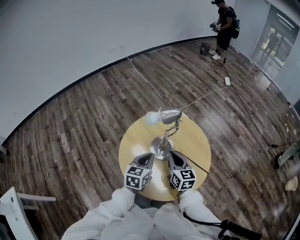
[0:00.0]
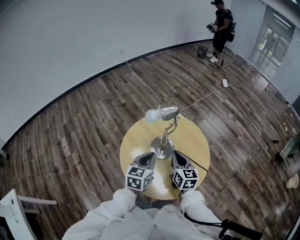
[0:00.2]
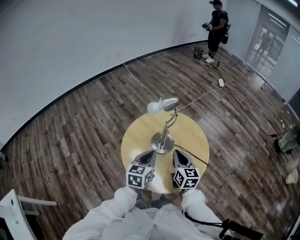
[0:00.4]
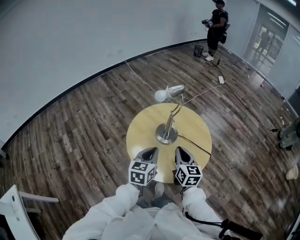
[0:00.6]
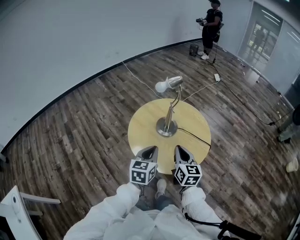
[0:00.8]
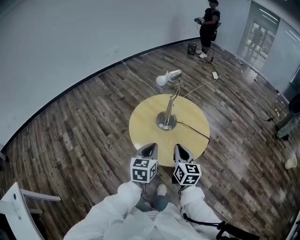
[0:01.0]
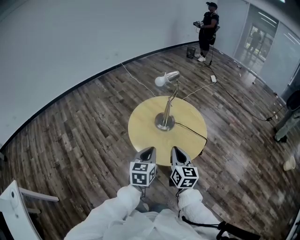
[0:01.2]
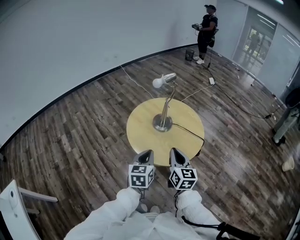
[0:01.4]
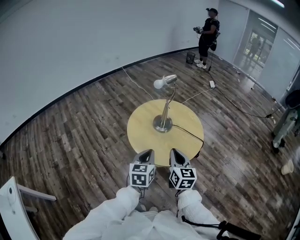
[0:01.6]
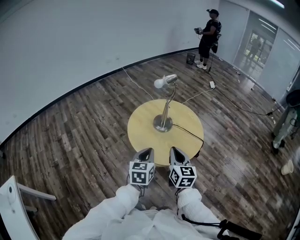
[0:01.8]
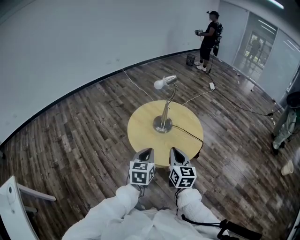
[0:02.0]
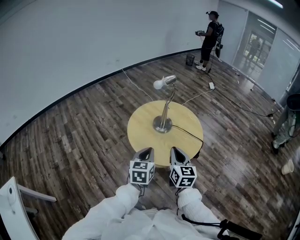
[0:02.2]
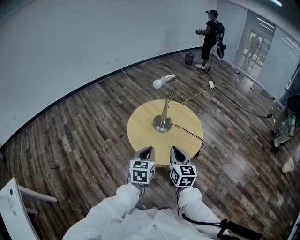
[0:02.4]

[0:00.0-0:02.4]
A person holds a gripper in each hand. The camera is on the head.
0:00.0 to 0:01.2: The two grippers go approximately 25 cm backward.
0:01.2 to 0:02.4: The grippers make only small movements.

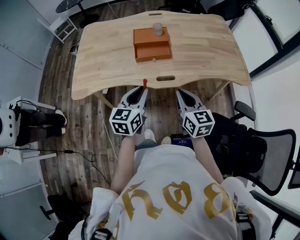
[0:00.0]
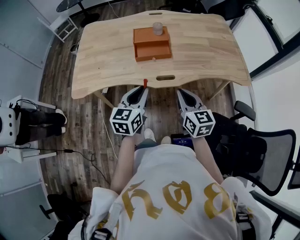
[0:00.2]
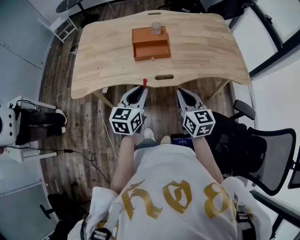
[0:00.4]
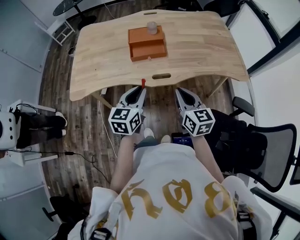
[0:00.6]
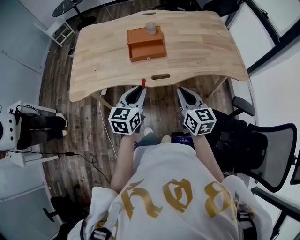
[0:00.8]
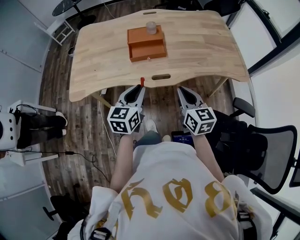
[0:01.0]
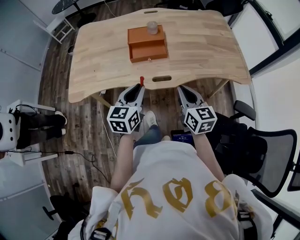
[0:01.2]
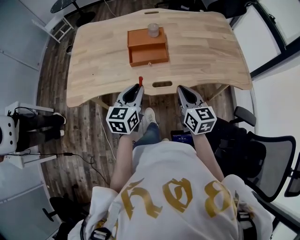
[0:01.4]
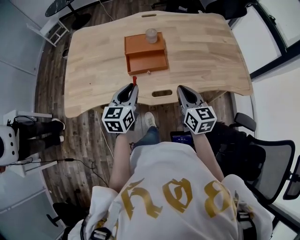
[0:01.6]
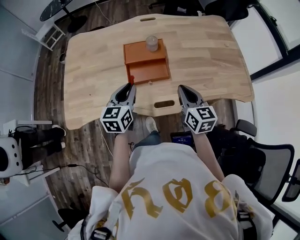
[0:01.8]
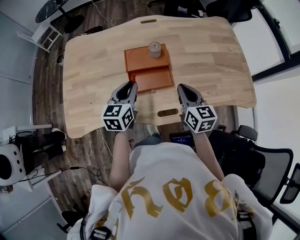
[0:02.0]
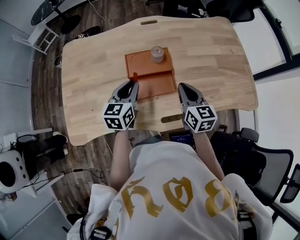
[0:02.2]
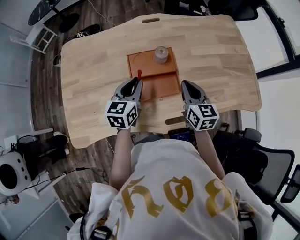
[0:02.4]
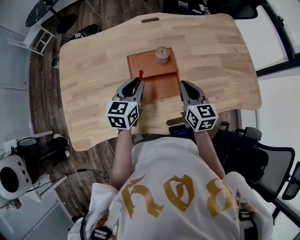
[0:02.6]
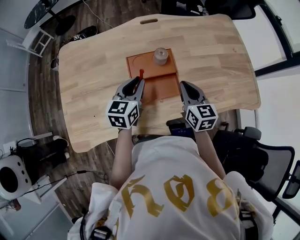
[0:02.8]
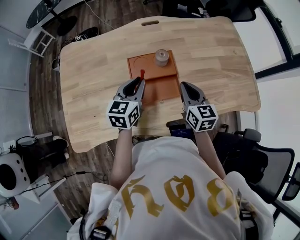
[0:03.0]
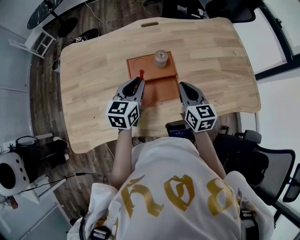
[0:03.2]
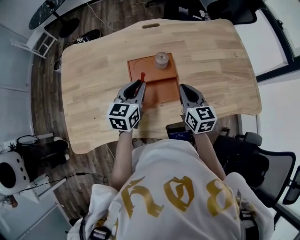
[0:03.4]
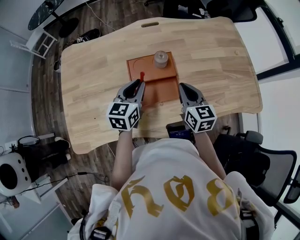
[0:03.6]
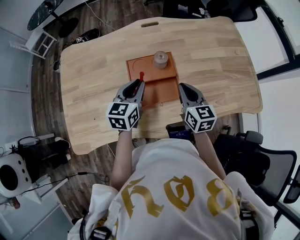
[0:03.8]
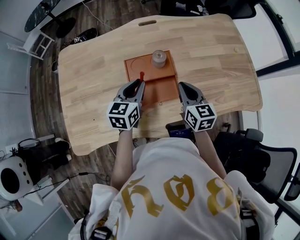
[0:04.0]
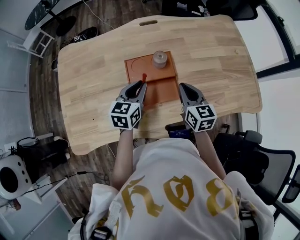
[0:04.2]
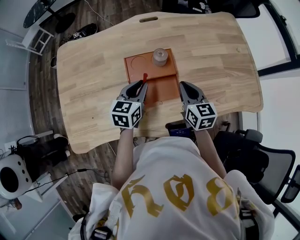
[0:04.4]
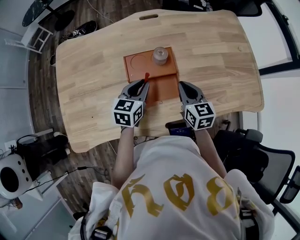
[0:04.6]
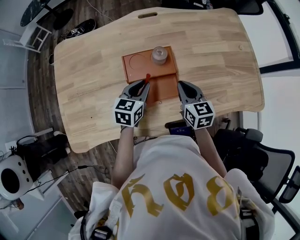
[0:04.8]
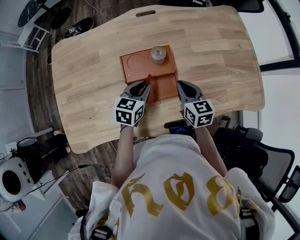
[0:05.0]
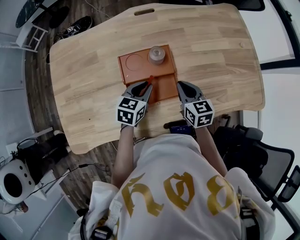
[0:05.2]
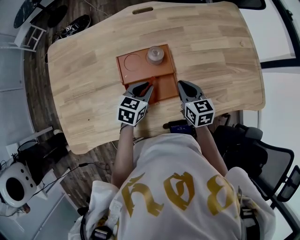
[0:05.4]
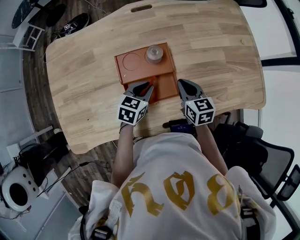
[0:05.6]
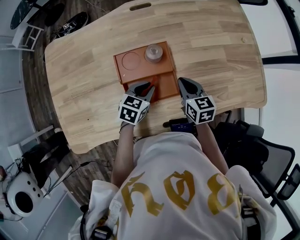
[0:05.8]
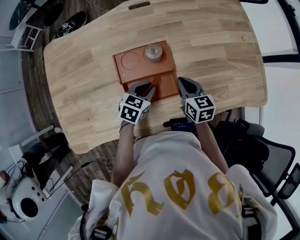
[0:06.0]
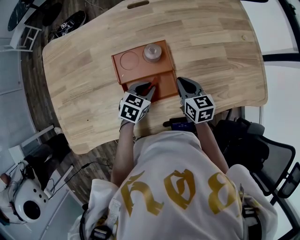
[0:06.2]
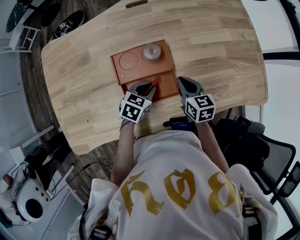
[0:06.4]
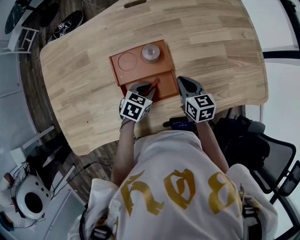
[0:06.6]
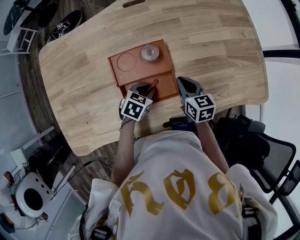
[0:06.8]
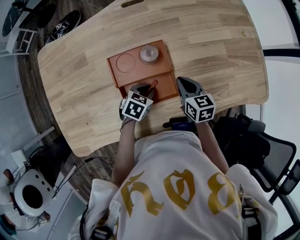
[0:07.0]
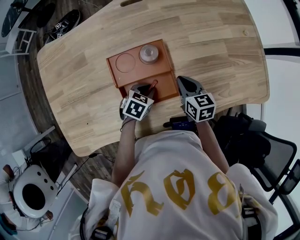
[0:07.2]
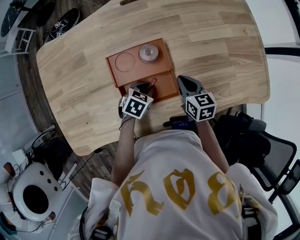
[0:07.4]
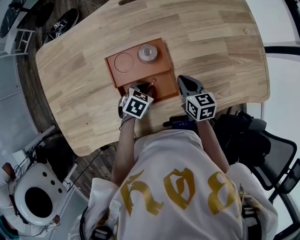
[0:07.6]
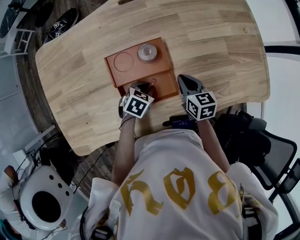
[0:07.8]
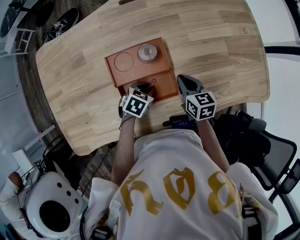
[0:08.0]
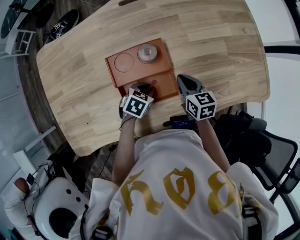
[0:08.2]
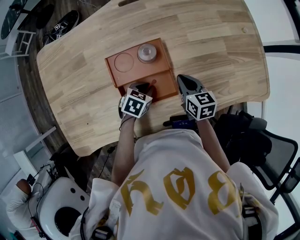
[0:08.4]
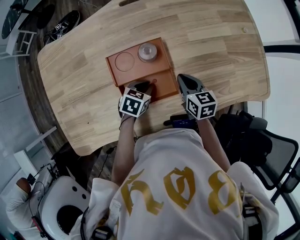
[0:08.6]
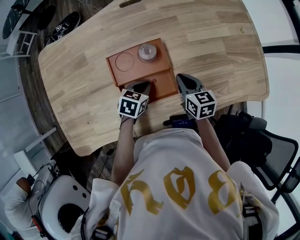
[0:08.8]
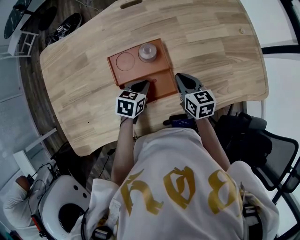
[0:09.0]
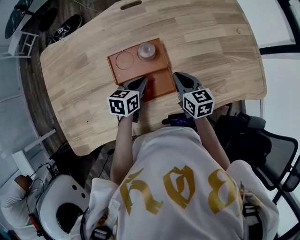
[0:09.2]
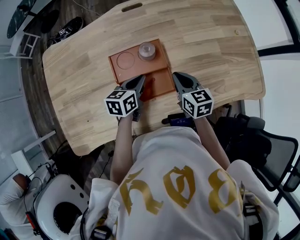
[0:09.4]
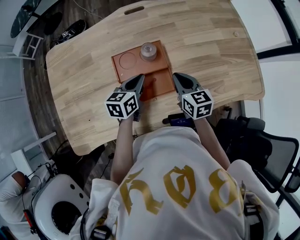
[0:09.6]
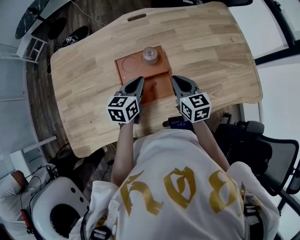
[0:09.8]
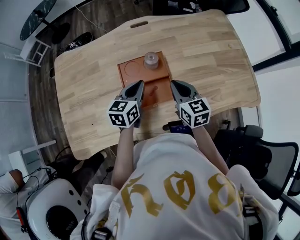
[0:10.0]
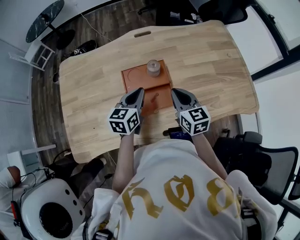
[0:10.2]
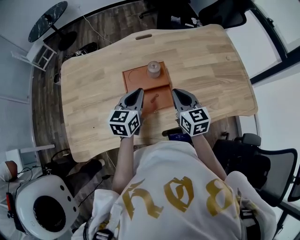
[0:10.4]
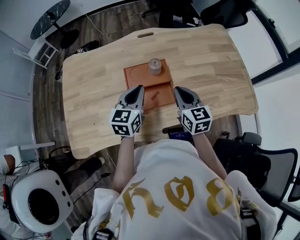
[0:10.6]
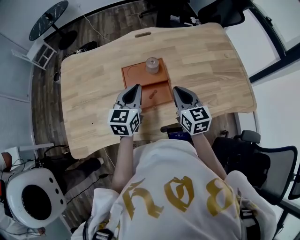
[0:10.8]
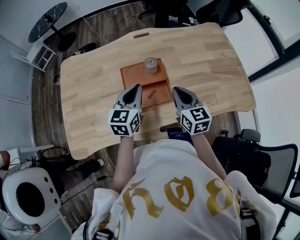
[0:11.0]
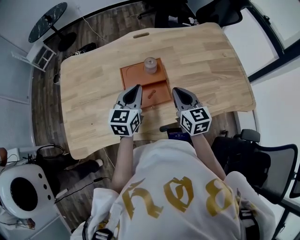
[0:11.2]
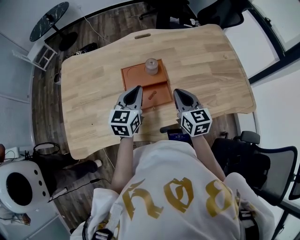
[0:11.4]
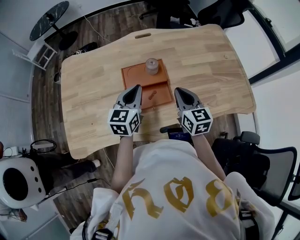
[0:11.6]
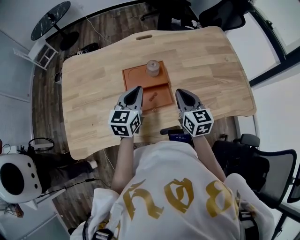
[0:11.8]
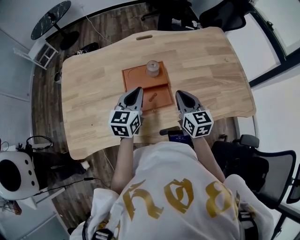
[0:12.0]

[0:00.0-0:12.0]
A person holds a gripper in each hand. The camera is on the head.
0:00.0 to 0:01.6: The two grippers go approximately 15 cm forward.
0:01.6 to 0:03.0: Both grippers move forward, about 20 cm.
0:03.0 to 0:04.4: The left gripper heads downward, covering roughly 5 cm.
0:04.4 to 0:06.0: The left gripper moves downward and to the right, about 10 cm, and turns by approximately 30 degrees. The right gripper heads downward, covering about 10 cm.
0:06.0 to 0:07.6: The left gripper travels downward by about 5 cm.
0:07.6 to 0:09.0: The left gripper shifts by roughly 5 cm.
0:09.0 to 0:10.4: The right gripper goes roughly 15 cm upward and backward; the left gripper travels upward by about 20 cm, and turns by some 30 degrees.
0:10.4 to 0:12.0: There are only small adjustments of the grippers.

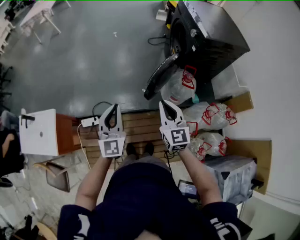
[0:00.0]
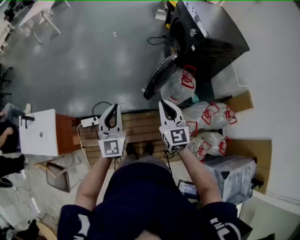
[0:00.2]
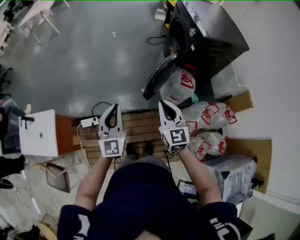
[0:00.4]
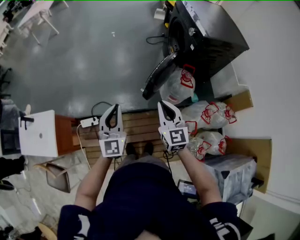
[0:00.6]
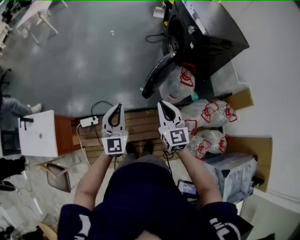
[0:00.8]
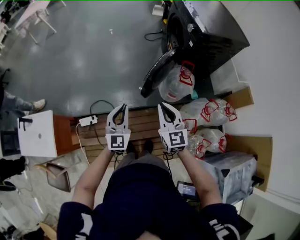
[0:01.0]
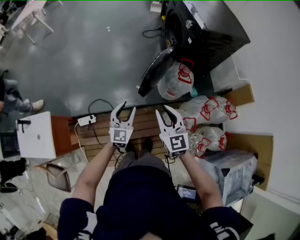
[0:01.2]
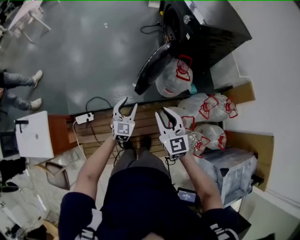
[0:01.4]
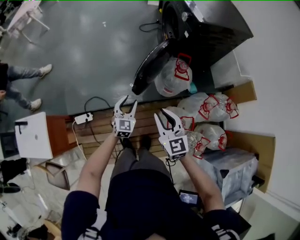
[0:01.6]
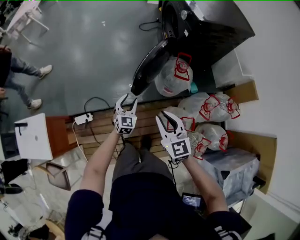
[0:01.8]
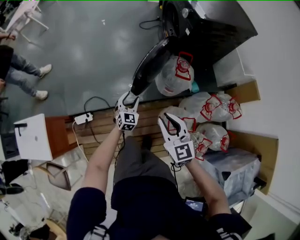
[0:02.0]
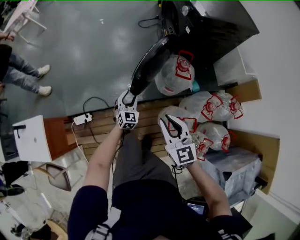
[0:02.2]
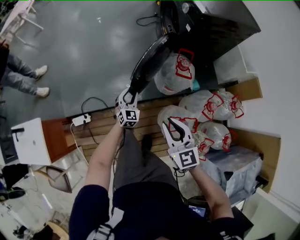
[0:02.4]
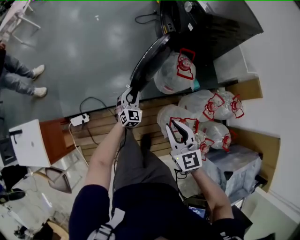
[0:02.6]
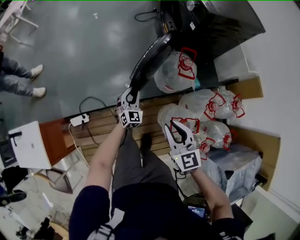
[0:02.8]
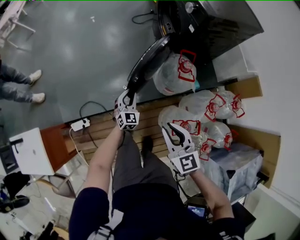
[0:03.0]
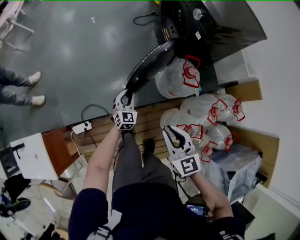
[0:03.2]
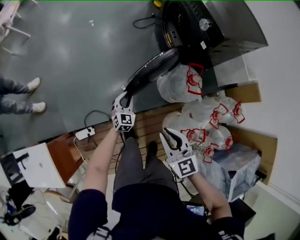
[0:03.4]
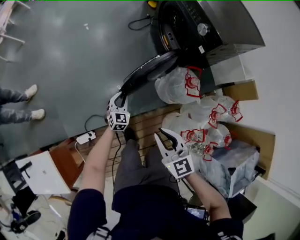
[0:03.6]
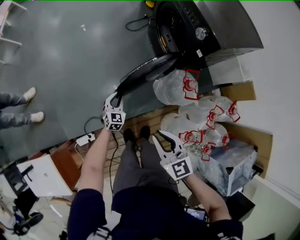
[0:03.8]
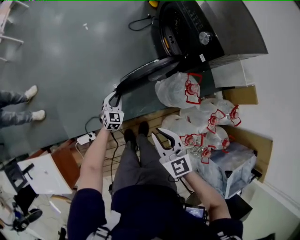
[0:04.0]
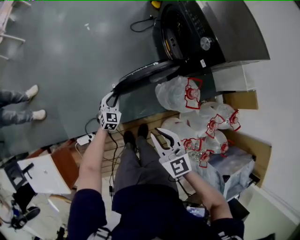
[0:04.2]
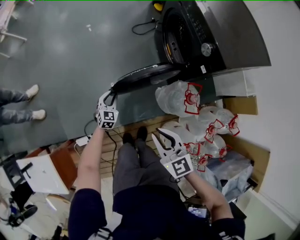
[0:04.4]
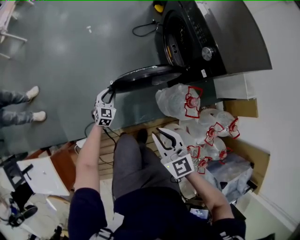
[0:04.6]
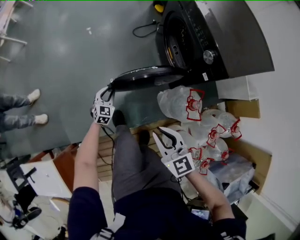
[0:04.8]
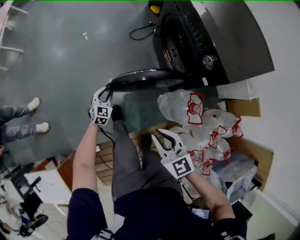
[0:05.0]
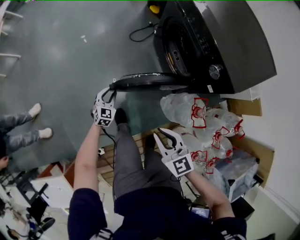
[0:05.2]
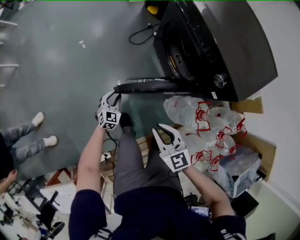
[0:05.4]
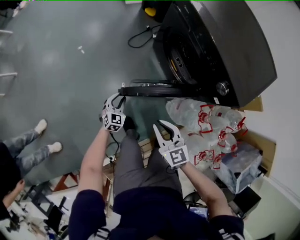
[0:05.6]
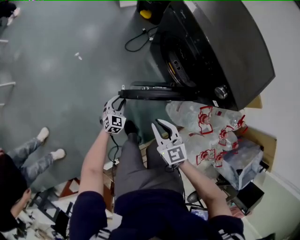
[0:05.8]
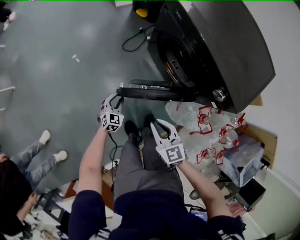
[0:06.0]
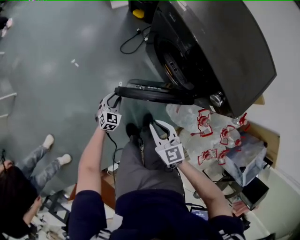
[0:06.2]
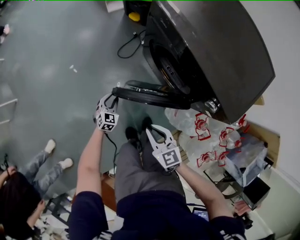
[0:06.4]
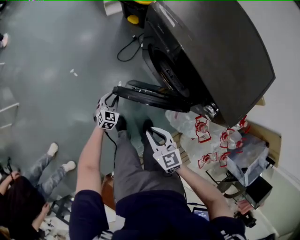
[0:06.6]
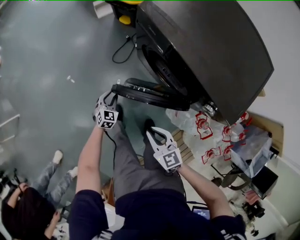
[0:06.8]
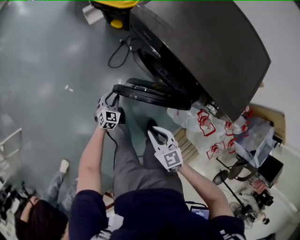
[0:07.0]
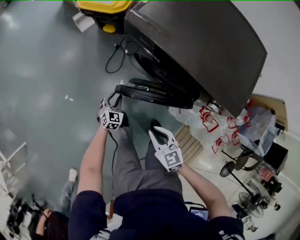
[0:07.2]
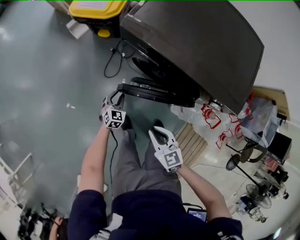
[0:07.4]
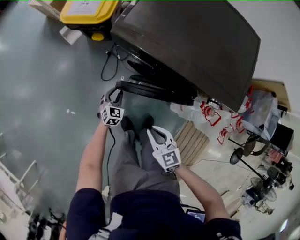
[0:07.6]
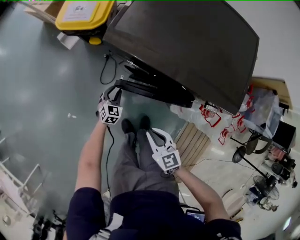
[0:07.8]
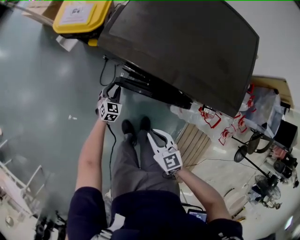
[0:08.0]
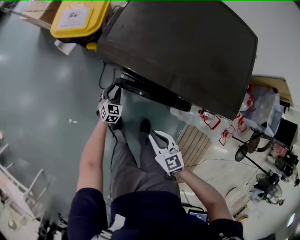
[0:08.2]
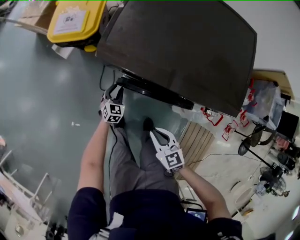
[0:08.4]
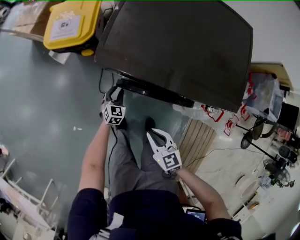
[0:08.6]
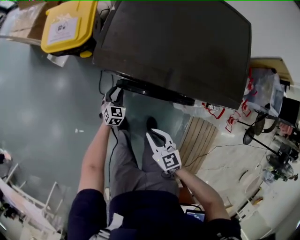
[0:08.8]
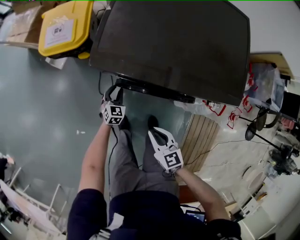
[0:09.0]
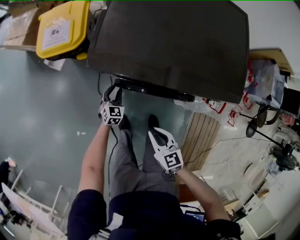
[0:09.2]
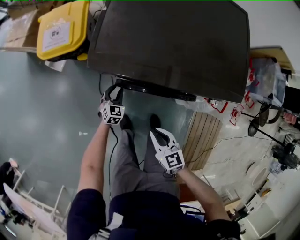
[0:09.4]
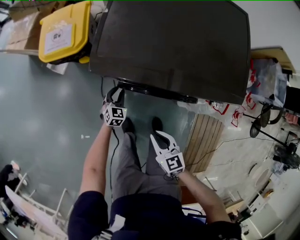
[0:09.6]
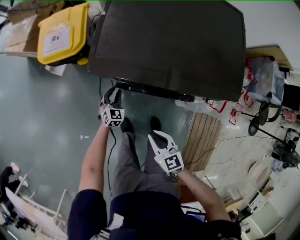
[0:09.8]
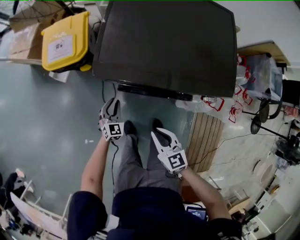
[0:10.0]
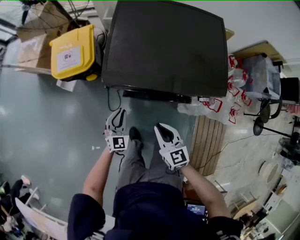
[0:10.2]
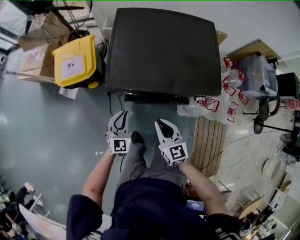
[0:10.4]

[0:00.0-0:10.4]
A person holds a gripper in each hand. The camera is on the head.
0:00.0 to 0:01.4: The right gripper is displaced downward and to the right by roughly 10 cm, and opens up, while the left gripper moves downward and to the right, roughly 25 cm, swivels some 30 degrees, and opens.
0:01.4 to 0:03.0: The left gripper goes some 20 cm downward and forward; the right gripper is displaced downward by about 5 cm.
0:03.0 to 0:04.4: Both grippers travel together forward and to the left, some 25 cm.
0:04.4 to 0:06.0: The grippers both shift forward by roughly 30 cm. The right gripper swivels some 20 degrees, while the left gripper changes its angle by approximately 30 degrees.
0:06.0 to 0:07.4: The left gripper is displaced forward by some 25 cm, and swivels approximately 20 degrees; the right gripper travels forward by roughly 15 cm, and rotates approximately 20 degrees.
0:07.4 to 0:09.0: The right gripper travels forward by about 10 cm, and swivels approximately 20 degrees. Meanwhile the left gripper travels forward by some 15 cm.
0:09.0 to 0:10.4: The right gripper is displaced upward by some 15 cm, and swivels about 20 degrees. Meanwhile the left gripper travels upward by about 30 cm, and turns by about 30 degrees.
